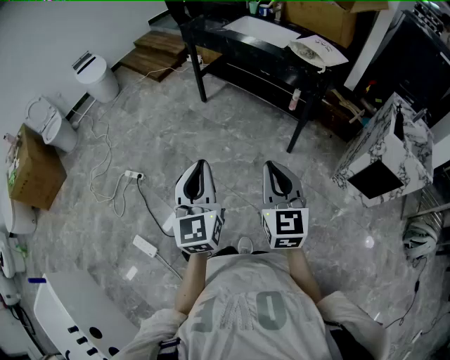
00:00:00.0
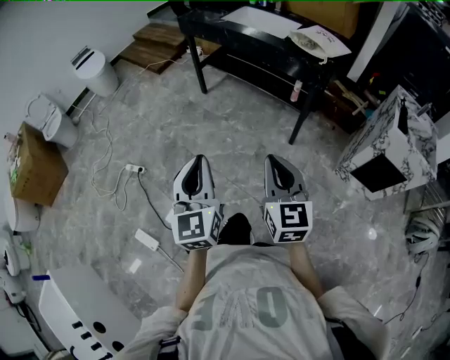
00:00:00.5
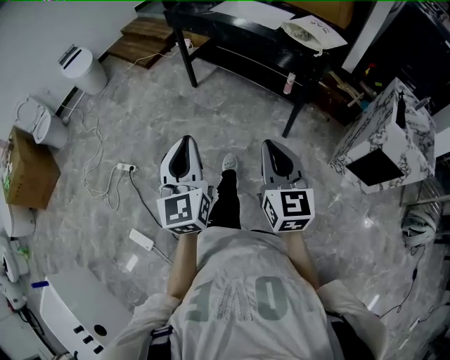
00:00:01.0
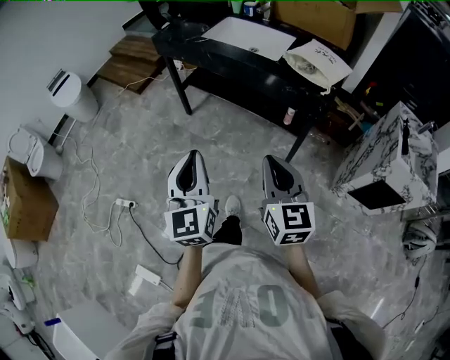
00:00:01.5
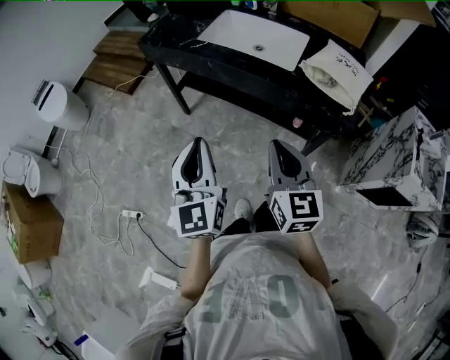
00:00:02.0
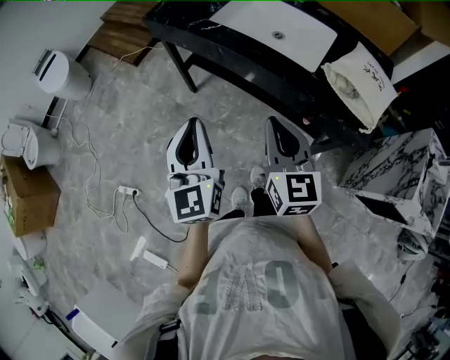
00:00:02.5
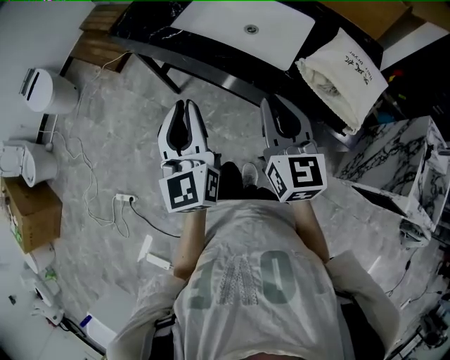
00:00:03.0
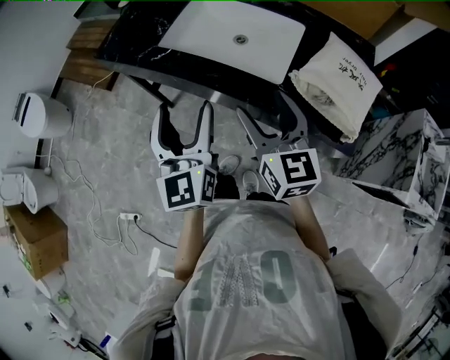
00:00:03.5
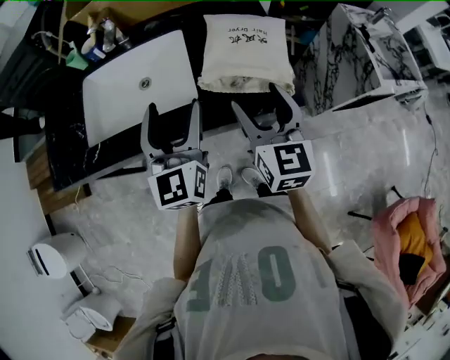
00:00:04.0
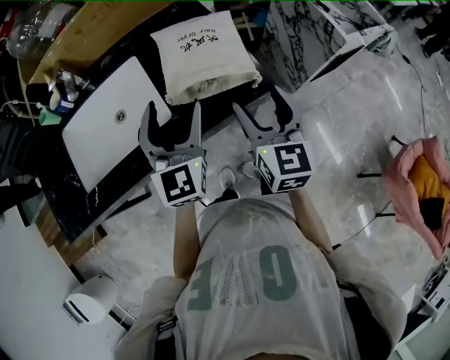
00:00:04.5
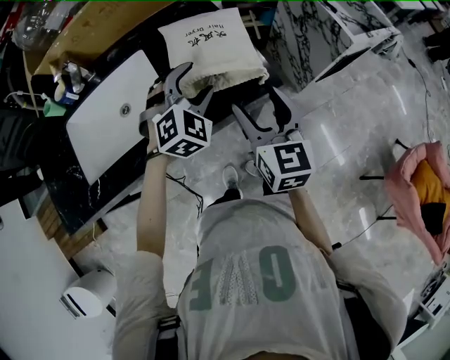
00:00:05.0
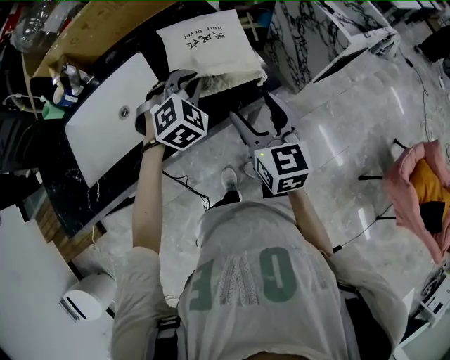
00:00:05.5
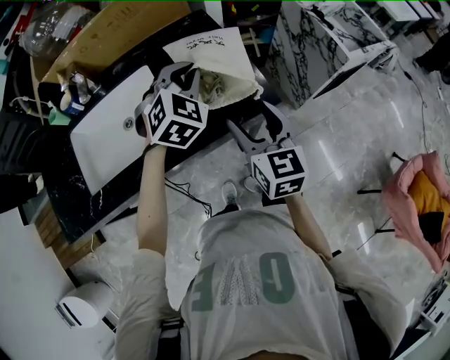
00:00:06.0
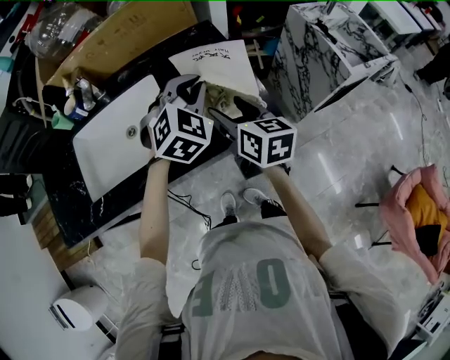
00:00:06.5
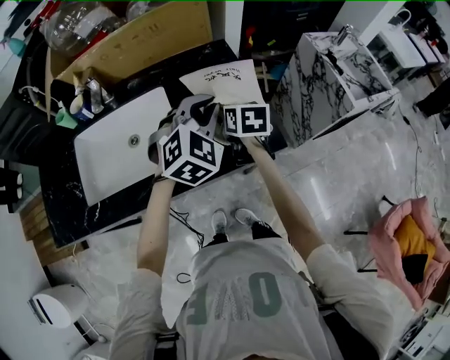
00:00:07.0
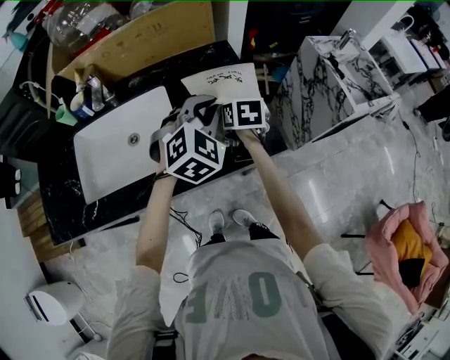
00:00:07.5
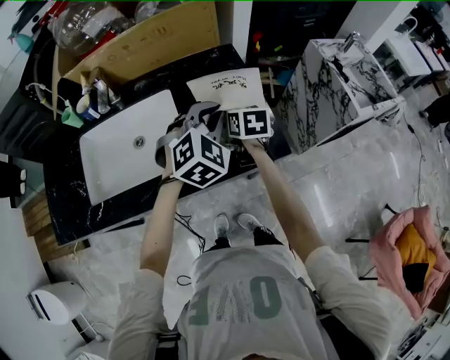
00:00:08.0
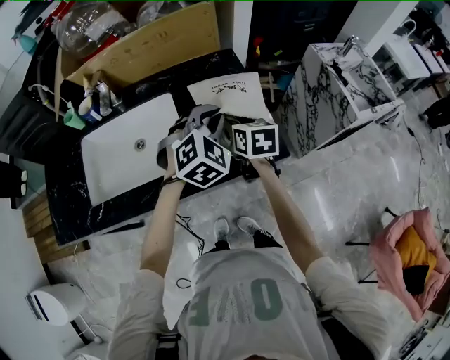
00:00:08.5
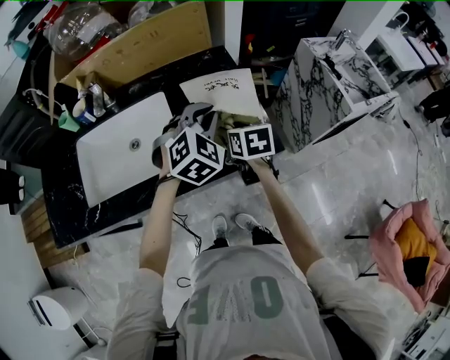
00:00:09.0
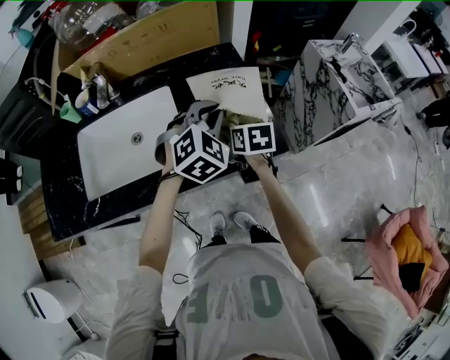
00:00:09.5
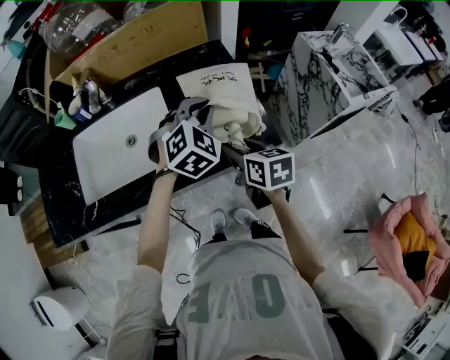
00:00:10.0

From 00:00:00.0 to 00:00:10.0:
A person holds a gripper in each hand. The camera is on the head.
From 00:00:00.0 to 00:00:02.0: The pair of grippers is taken forward, some 40 cm.
From 00:00:02.0 to 00:00:04.0: The right gripper shifts by approximately 30 cm, changes its angle by roughly 40 degrees, and opens its fingers. Meanwhile the left gripper shifts by approximately 40 cm, swivels approximately 40 degrees, and opens.
From 00:00:04.0 to 00:00:06.0: The left gripper is displaced forward and to the right by some 20 cm, points its fingers about 30 degrees further downward, and closes.
From 00:00:06.0 to 00:00:08.0: The right gripper is displaced forward and downward by some 20 cm, changes its angle by about 30 degrees, and closes.
From 00:00:08.0 to 00:00:10.0: The right gripper shifts approximately 15 cm backward.

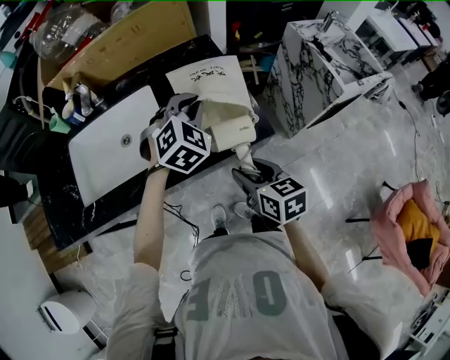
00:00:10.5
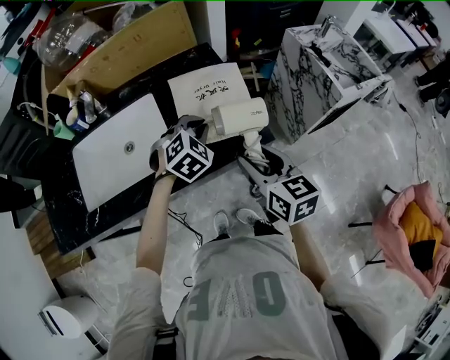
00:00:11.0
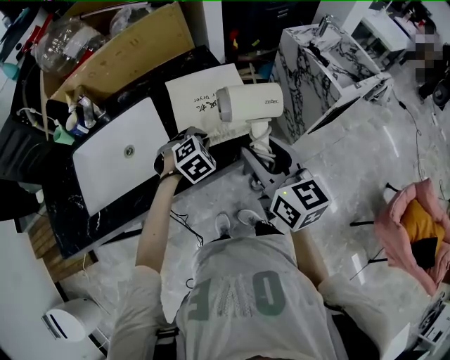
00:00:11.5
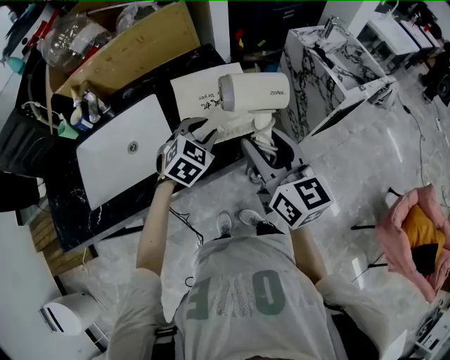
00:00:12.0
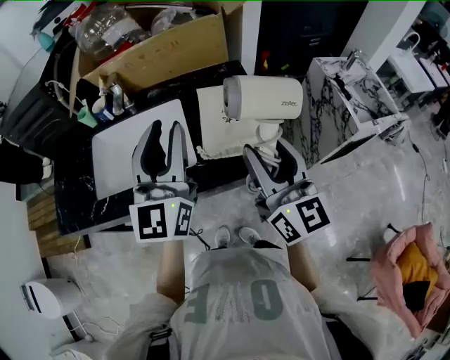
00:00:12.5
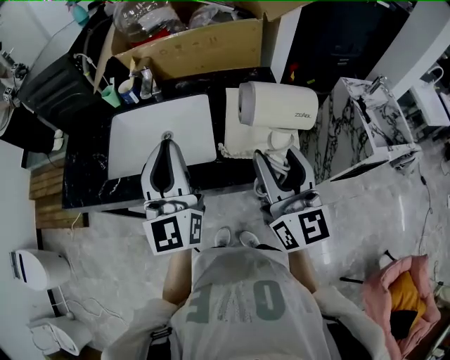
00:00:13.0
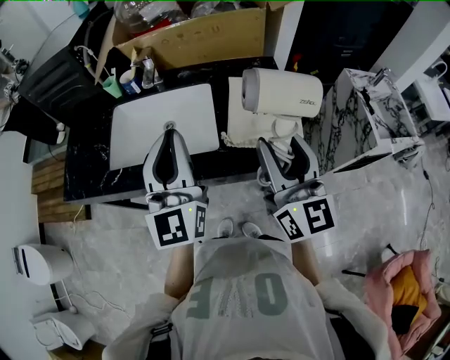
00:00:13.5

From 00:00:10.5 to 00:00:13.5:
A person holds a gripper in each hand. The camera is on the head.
From 00:00:10.5 to 00:00:12.0: The right gripper heads upward, covering roughly 15 cm, and rotates some 30 degrees. The left gripper moves downward, about 5 cm.
From 00:00:12.0 to 00:00:13.5: The right gripper moves some 10 cm. The left gripper heads upward, covering approximately 20 cm, and points its fingers some 50 degrees further upward.

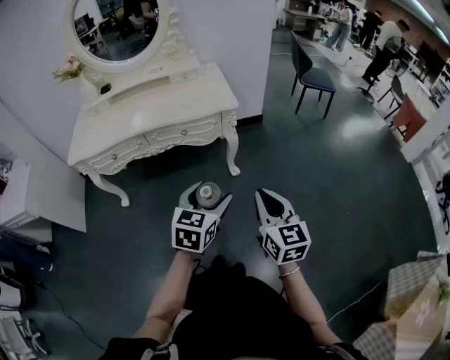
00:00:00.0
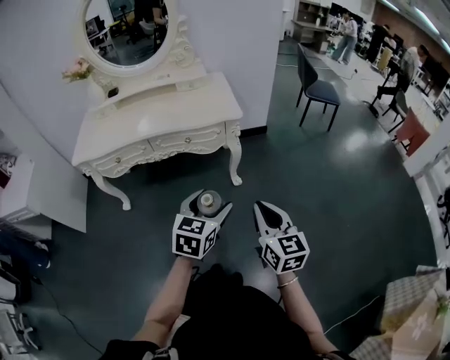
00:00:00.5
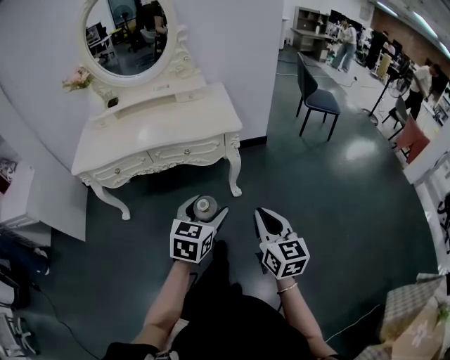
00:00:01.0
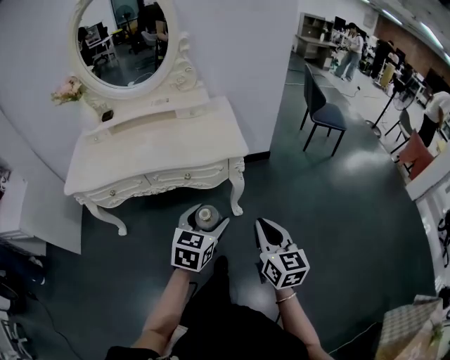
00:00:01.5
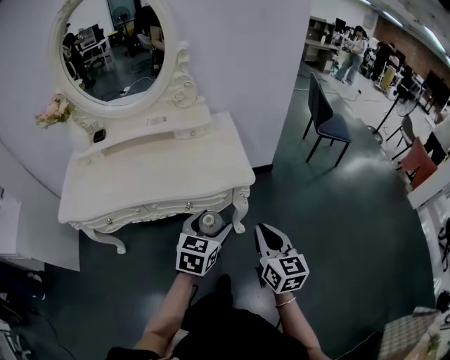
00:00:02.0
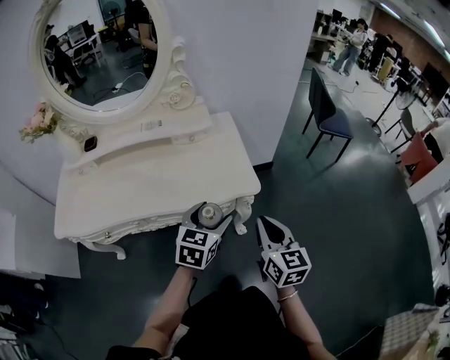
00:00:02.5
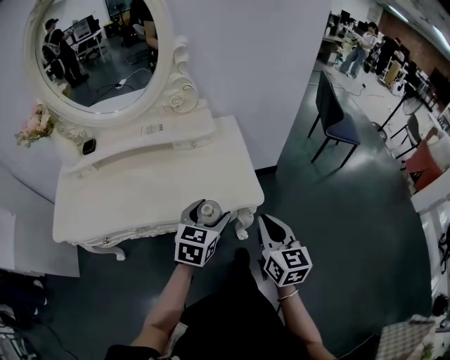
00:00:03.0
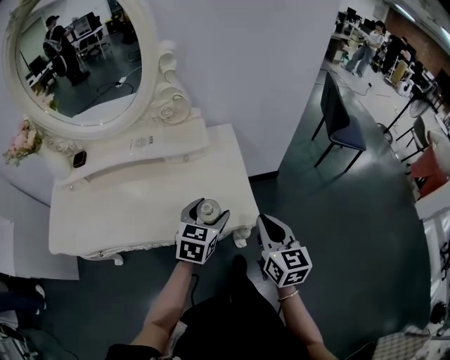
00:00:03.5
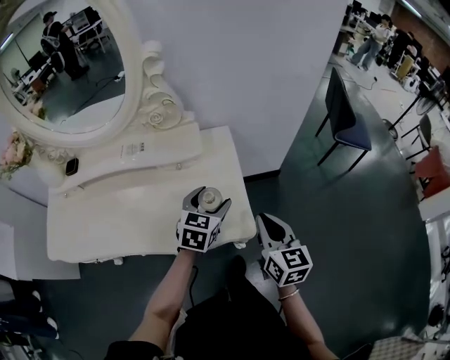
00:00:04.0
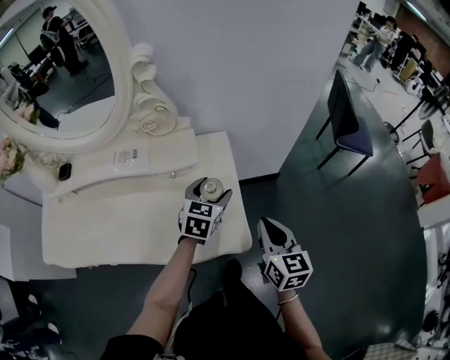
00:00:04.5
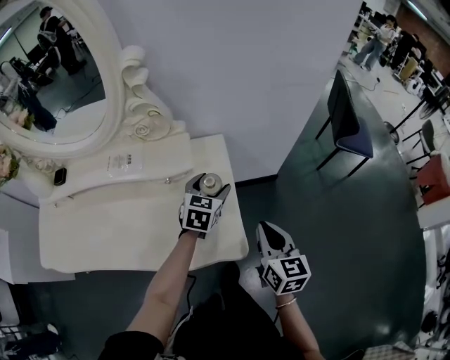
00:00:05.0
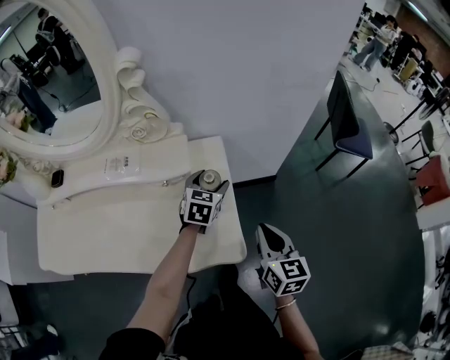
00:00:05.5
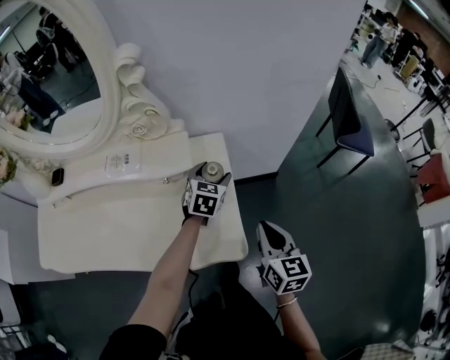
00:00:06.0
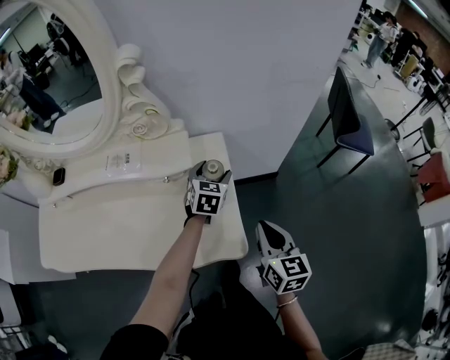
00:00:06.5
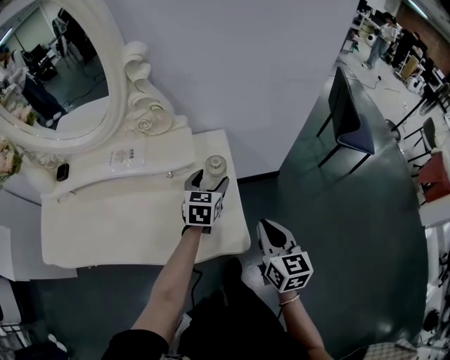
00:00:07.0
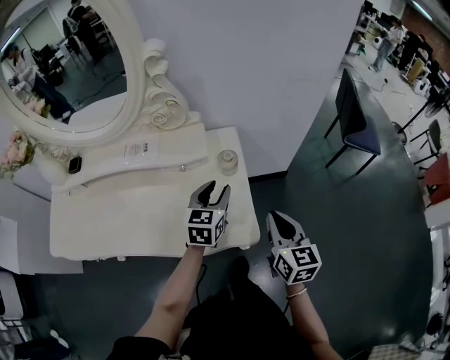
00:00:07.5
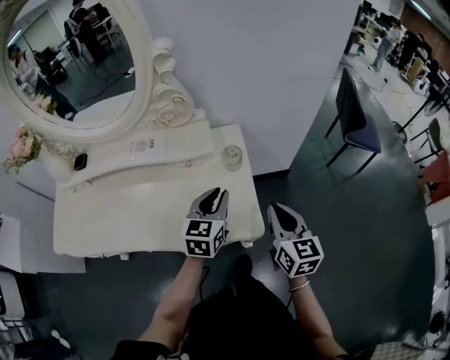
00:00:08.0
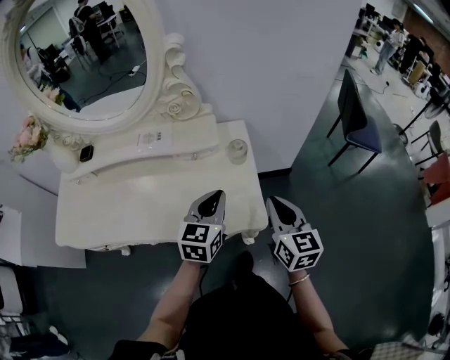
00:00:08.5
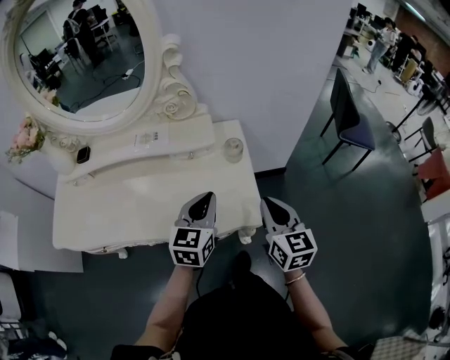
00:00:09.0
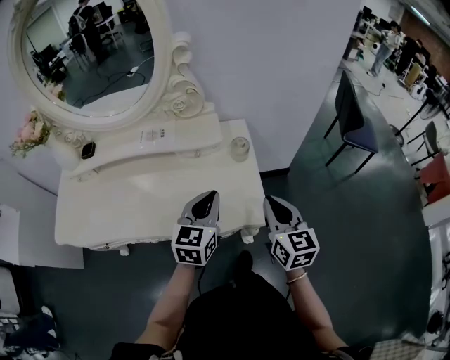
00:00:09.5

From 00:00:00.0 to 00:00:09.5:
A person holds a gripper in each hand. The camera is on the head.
From 00:00:00.0 to 00:00:02.0: The two grippers go approximately 25 cm forward.
From 00:00:02.0 to 00:00:04.0: Both grippers move forward, some 30 cm.
From 00:00:04.0 to 00:00:05.5: The right gripper shifts approximately 5 cm forward. The left gripper goes approximately 15 cm forward.
From 00:00:05.5 to 00:00:07.5: The left gripper travels backward and upward by roughly 10 cm, and closes.
From 00:00:07.5 to 00:00:09.5: The left gripper travels backward, upward and to the left by approximately 15 cm, and closes, while the right gripper moves to the left, roughly 5 cm.

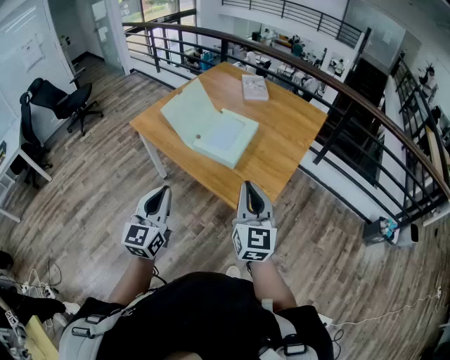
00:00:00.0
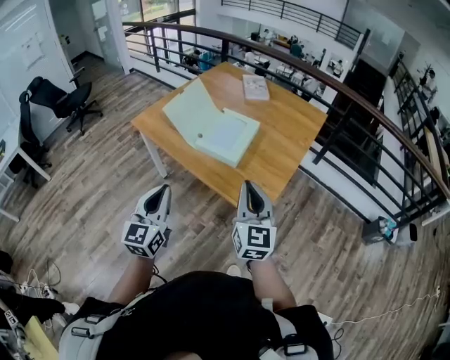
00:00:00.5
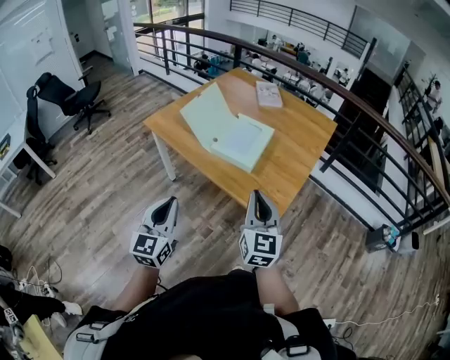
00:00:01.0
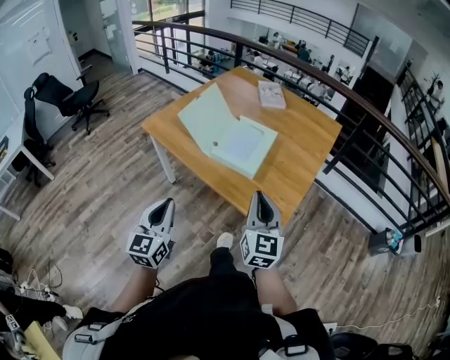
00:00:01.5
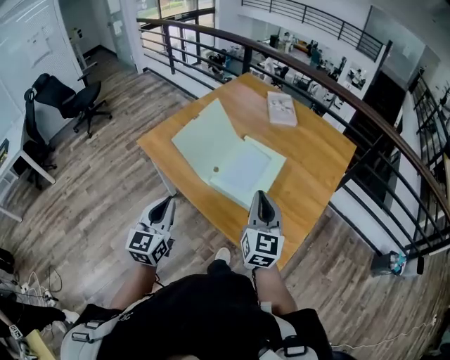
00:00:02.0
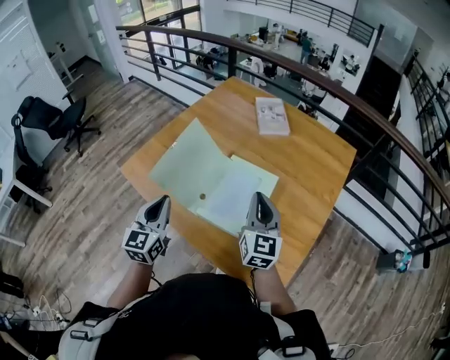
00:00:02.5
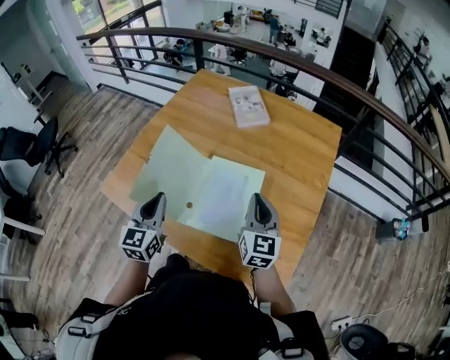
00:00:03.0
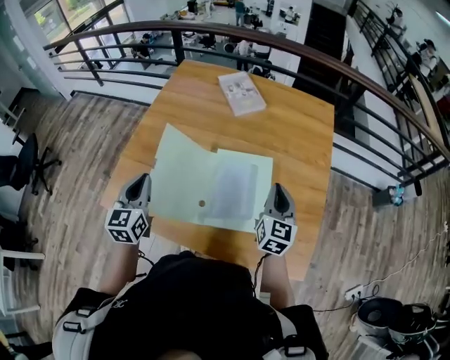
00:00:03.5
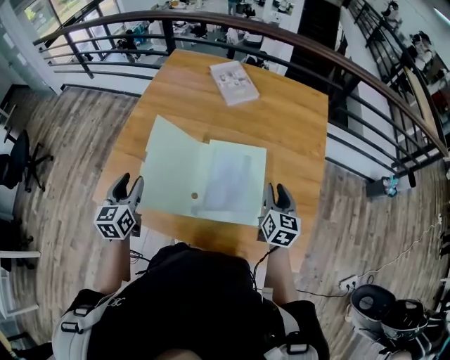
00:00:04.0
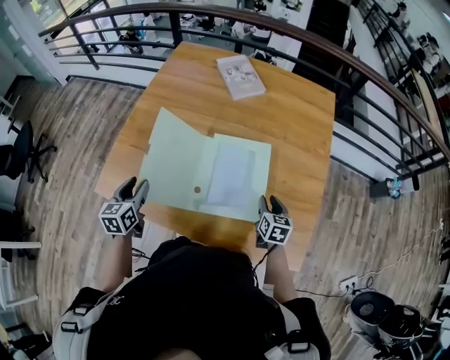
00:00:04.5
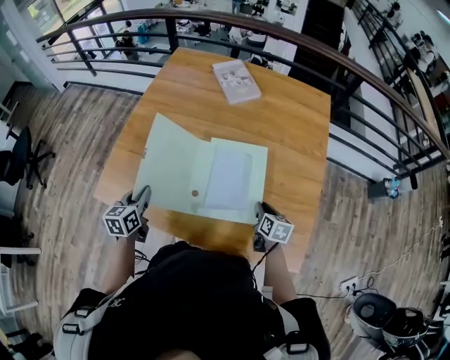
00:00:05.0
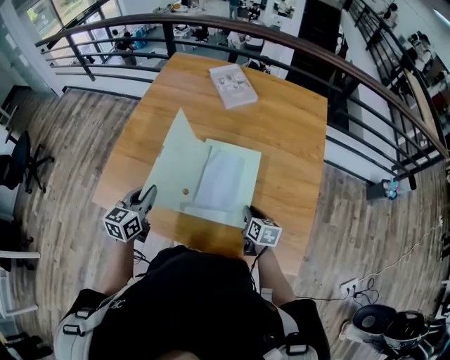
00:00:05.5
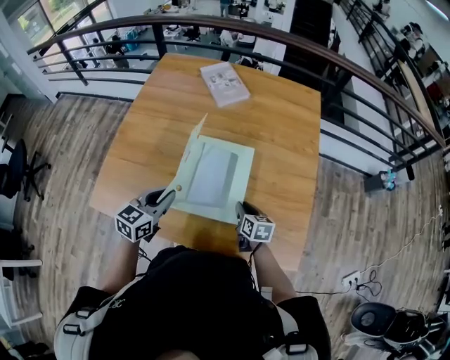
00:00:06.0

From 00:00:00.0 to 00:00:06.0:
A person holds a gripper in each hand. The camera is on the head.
From 00:00:00.0 to 00:00:02.0: The left gripper goes approximately 20 cm forward and to the left; the right gripper shifts about 20 cm forward.
From 00:00:02.0 to 00:00:04.0: The left gripper heads forward and to the left, covering some 35 cm, swivels approximately 20 degrees, and opens. Meanwhile the right gripper is displaced forward and downward by roughly 20 cm, rotates about 40 degrees, and opens its fingers.
From 00:00:04.0 to 00:00:06.0: The right gripper shifts approximately 15 cm downward, and rotates about 30 degrees, while the left gripper goes about 15 cm to the right, swivels some 30 degrees, and closes.
